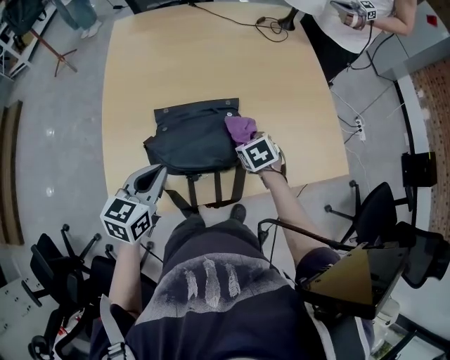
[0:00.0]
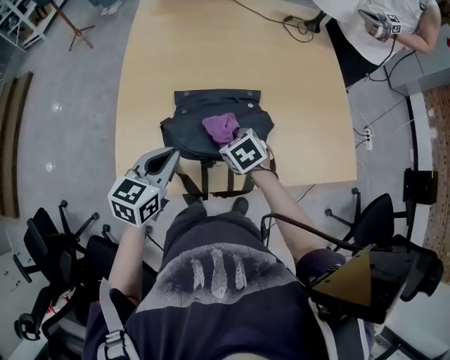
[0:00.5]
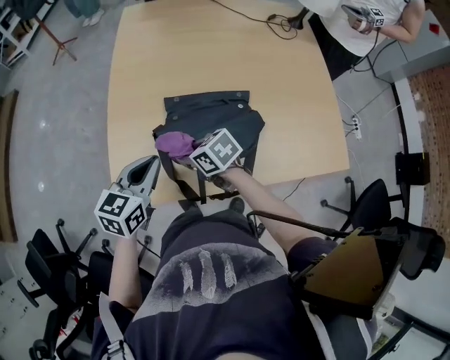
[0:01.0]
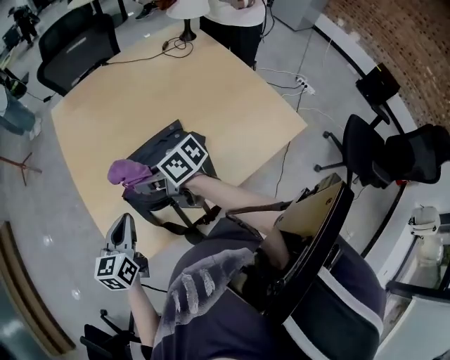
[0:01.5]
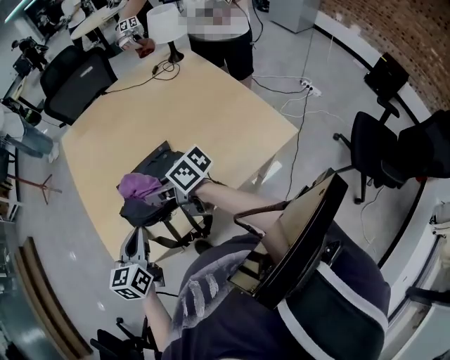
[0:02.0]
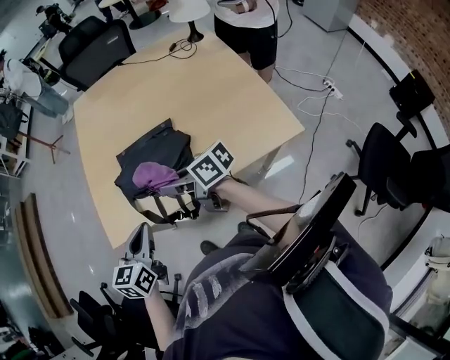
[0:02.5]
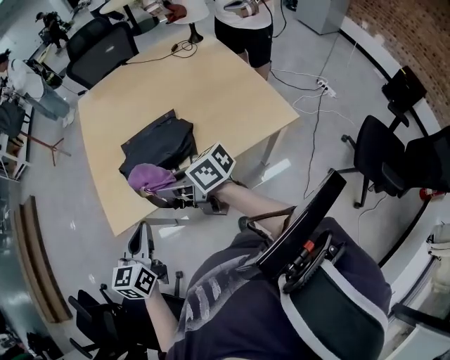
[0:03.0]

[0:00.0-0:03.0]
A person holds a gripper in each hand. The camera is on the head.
0:00.0 to 0:01.5: The left gripper changes place by approximately 5 cm. Meanwhile the right gripper moves roughly 25 cm, and angles its fingers upward, by roughly 50 degrees.
0:01.5 to 0:03.0: The grippers both shift backward by approximately 25 cm.

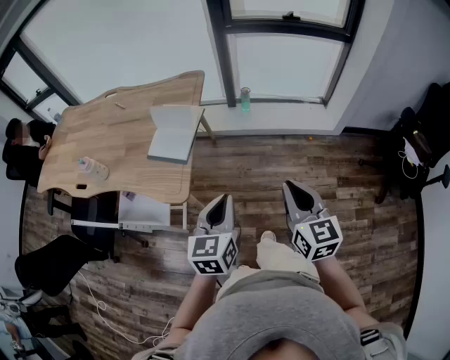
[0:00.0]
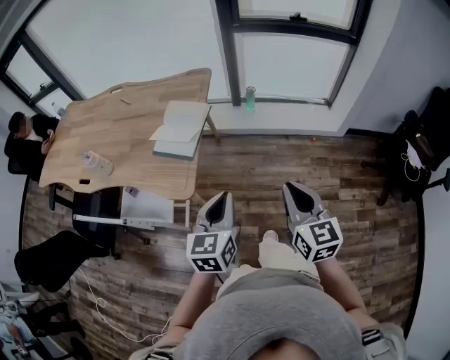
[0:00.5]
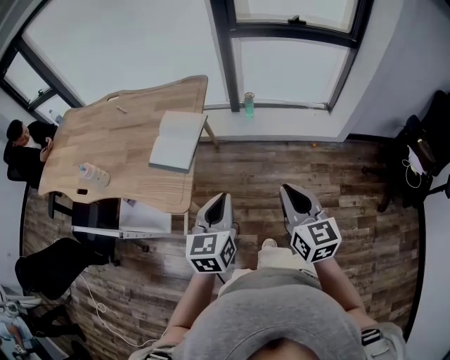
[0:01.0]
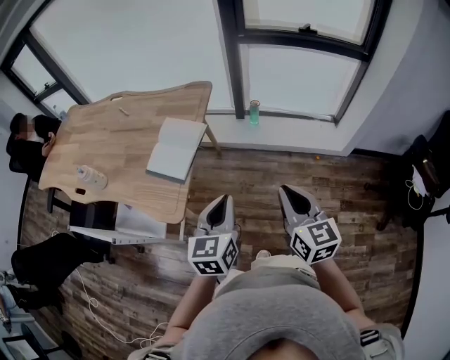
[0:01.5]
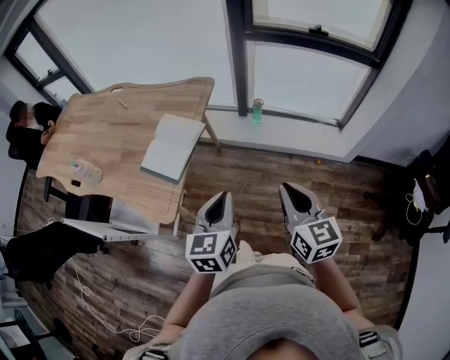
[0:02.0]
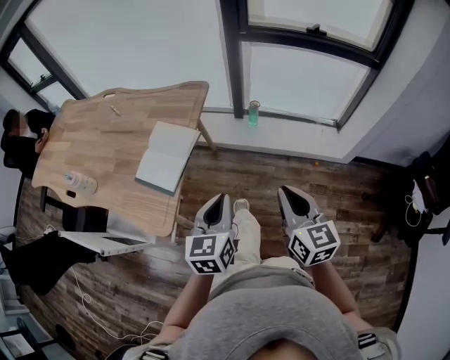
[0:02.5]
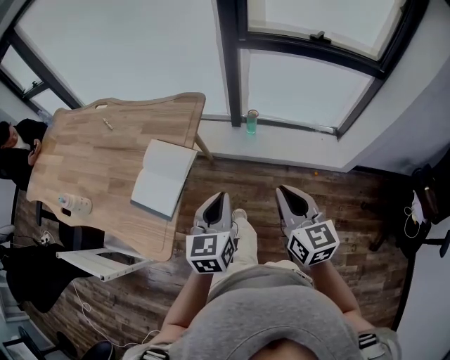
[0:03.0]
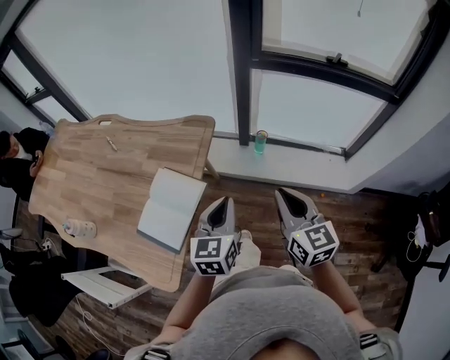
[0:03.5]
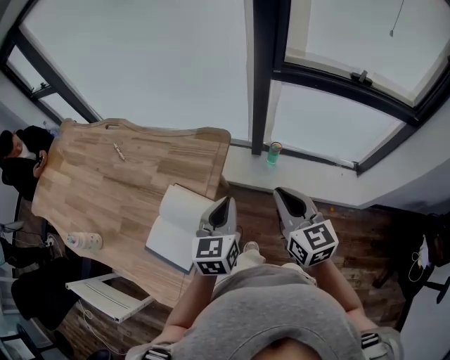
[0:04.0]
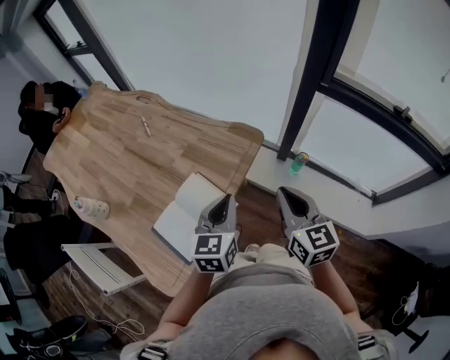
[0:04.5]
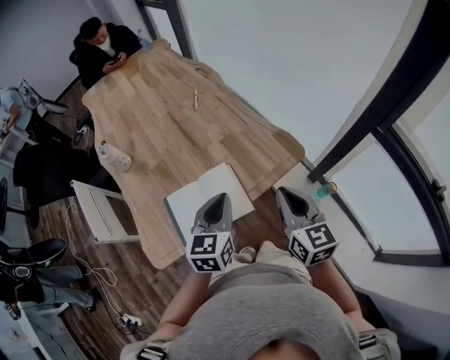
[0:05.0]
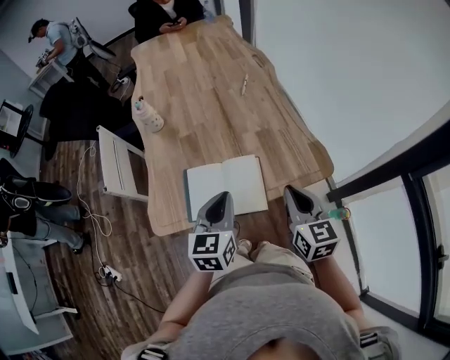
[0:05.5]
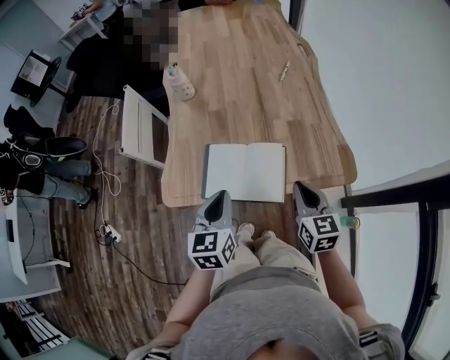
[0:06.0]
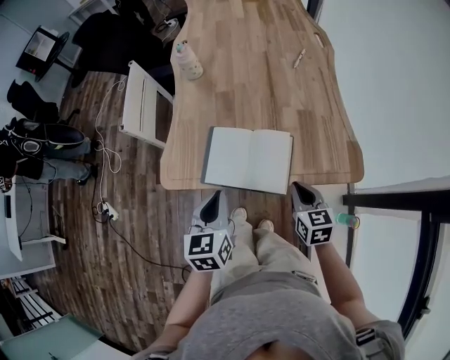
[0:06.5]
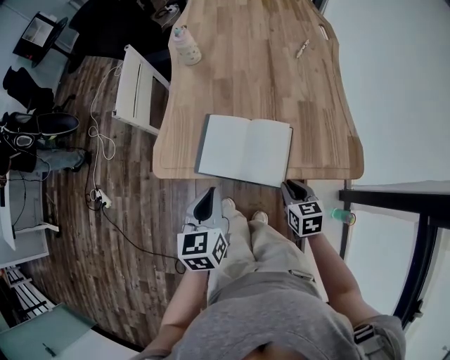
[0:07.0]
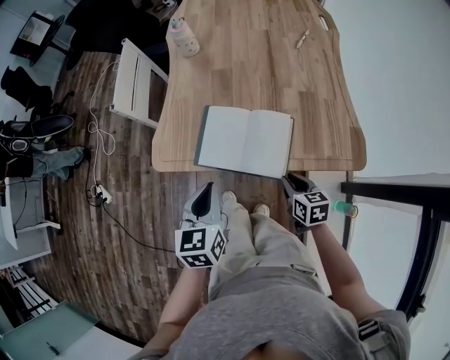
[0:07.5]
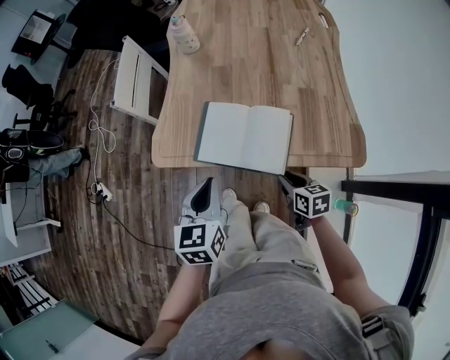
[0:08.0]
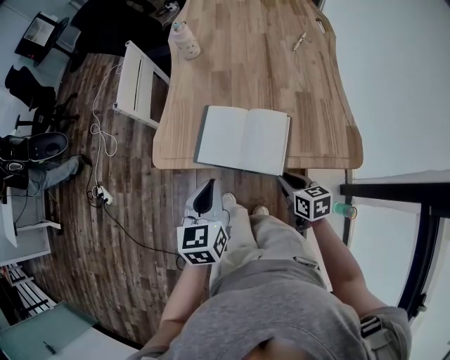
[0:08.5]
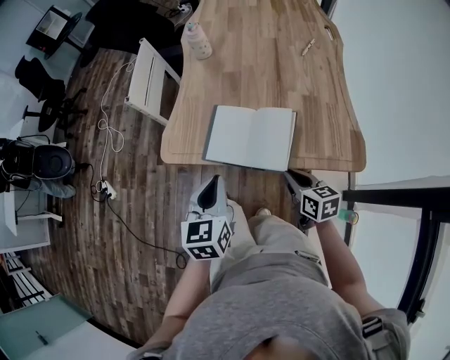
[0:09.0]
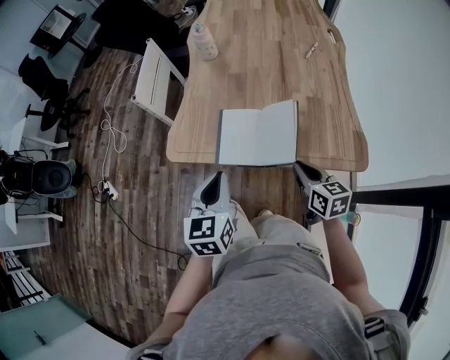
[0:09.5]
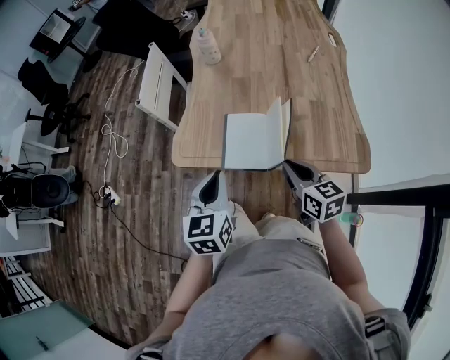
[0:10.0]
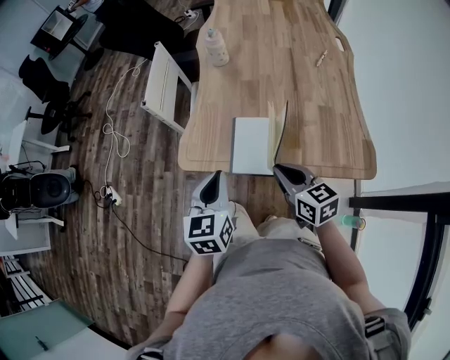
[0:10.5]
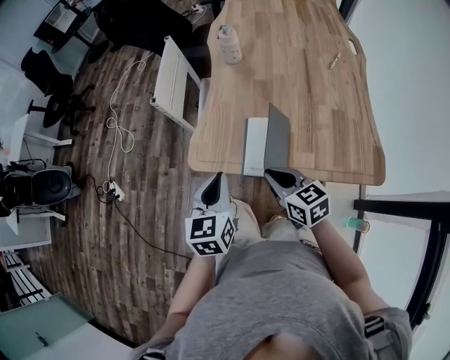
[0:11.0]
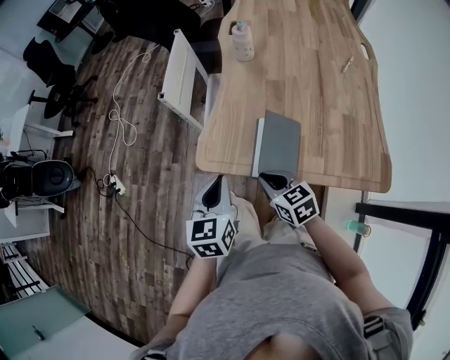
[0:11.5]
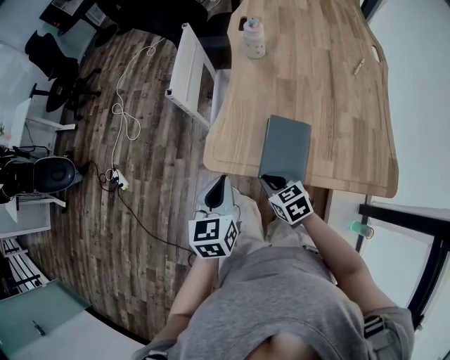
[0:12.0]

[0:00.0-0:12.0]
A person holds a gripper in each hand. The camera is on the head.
0:00.0 to 0:02.0: The left gripper shifts some 15 cm forward and to the right; the right gripper goes roughly 15 cm forward.
0:02.0 to 0:04.0: Both grippers travel together forward, some 35 cm.
0:04.0 to 0:06.0: The left gripper shifts by some 20 cm, and swivels about 70 degrees, while the right gripper moves some 25 cm, and turns by roughly 60 degrees.
0:06.0 to 0:08.0: The left gripper changes place by roughly 5 cm; the right gripper shifts approximately 20 cm downward, changes its angle by about 30 degrees, and opens up.
0:08.0 to 0:10.0: The right gripper goes about 15 cm upward, rotates some 20 degrees, and closes.
0:10.0 to 0:12.0: The left gripper goes some 15 cm to the left and forward, while the right gripper travels to the left, downward and forward by some 25 cm, and swivels about 30 degrees.

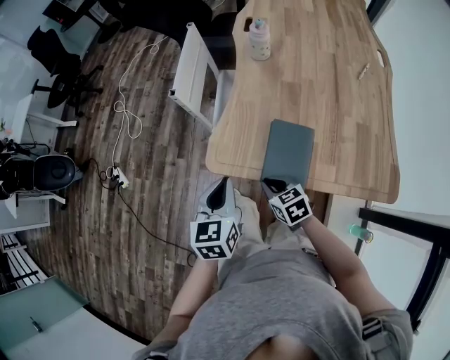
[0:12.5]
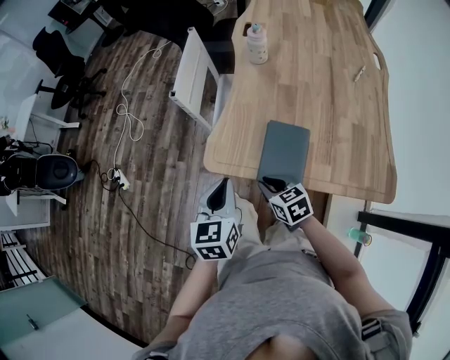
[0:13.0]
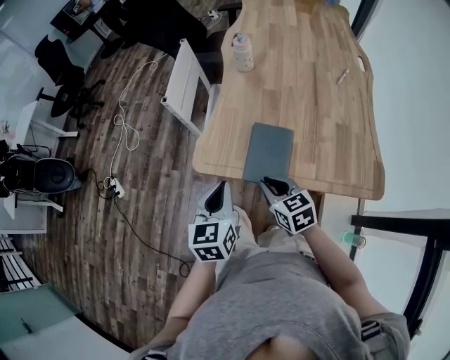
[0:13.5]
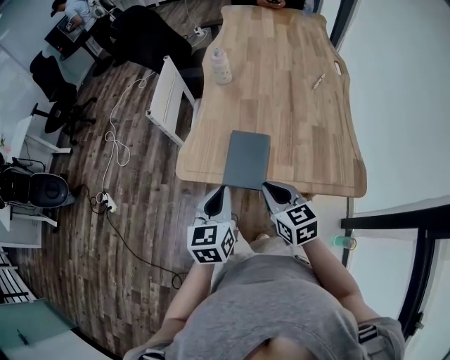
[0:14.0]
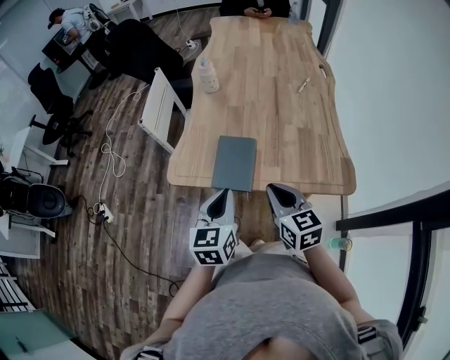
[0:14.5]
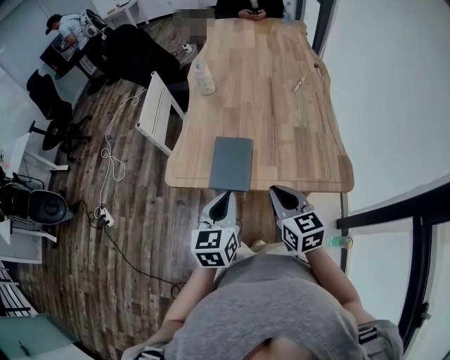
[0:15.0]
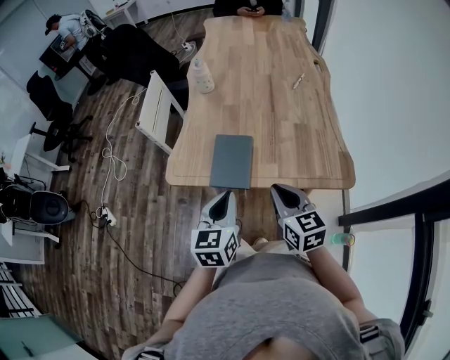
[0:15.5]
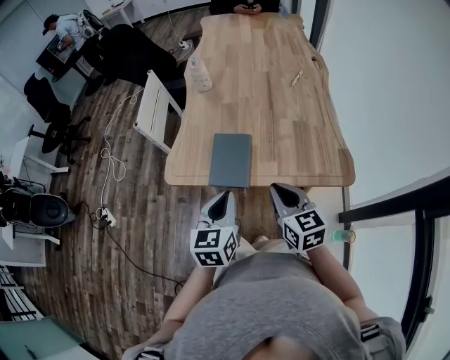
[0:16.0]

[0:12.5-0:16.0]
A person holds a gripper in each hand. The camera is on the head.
0:12.5 to 0:14.5: The right gripper is displaced upward, to the right and backward by approximately 25 cm, and turns by about 30 degrees; the left gripper is displaced to the right and backward by roughly 20 cm.
0:14.5 to 0:16.0: The grippers move only a little.

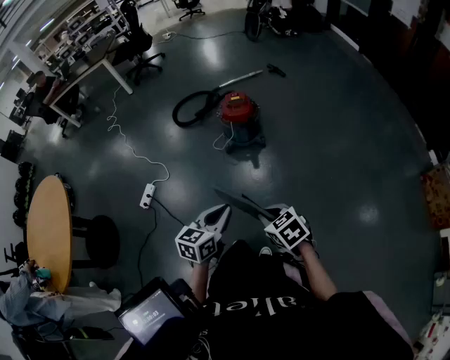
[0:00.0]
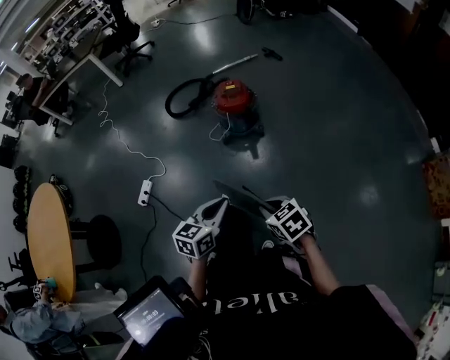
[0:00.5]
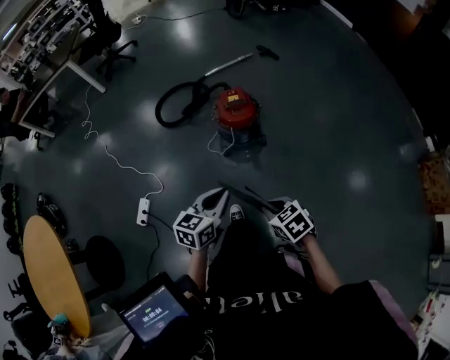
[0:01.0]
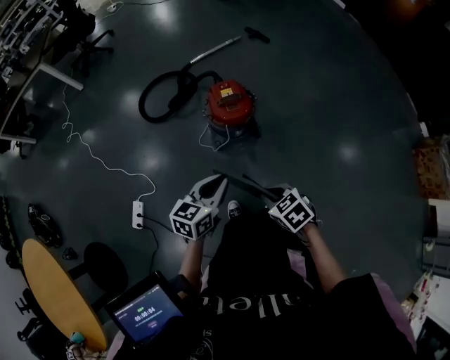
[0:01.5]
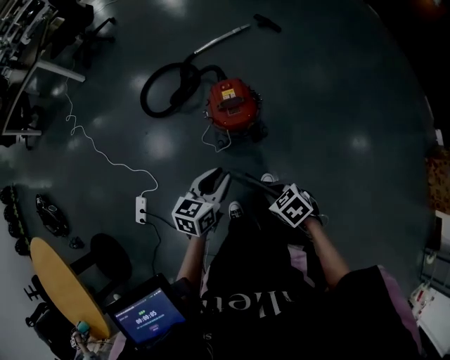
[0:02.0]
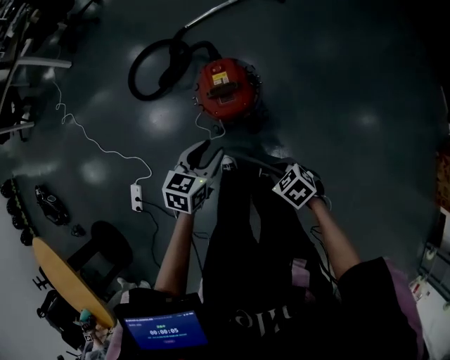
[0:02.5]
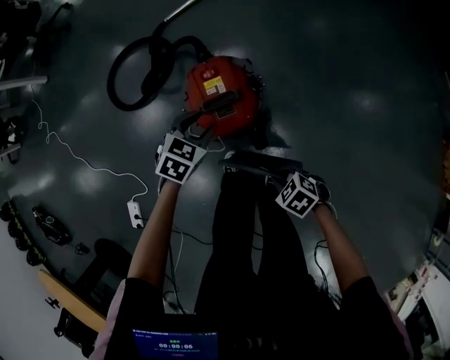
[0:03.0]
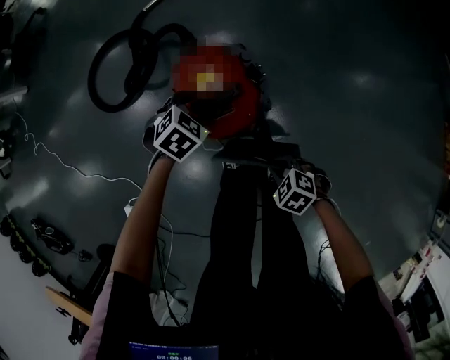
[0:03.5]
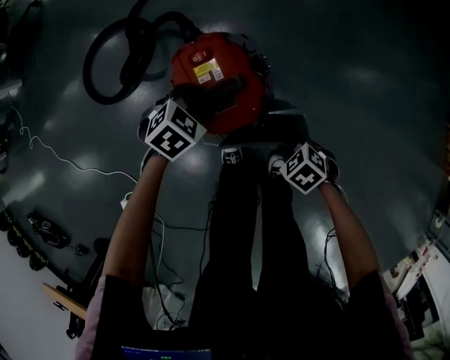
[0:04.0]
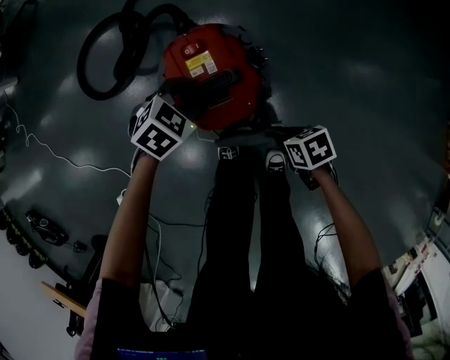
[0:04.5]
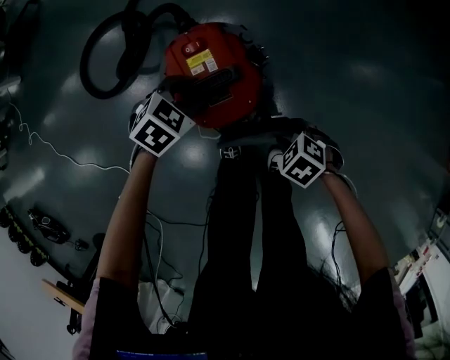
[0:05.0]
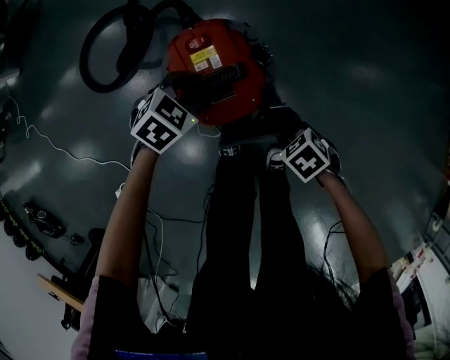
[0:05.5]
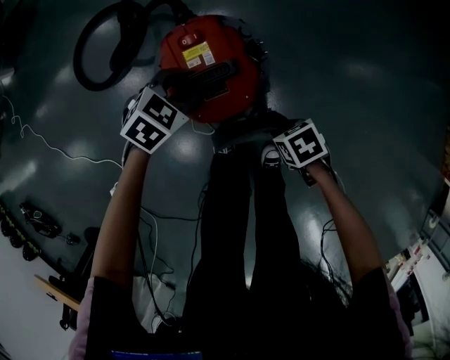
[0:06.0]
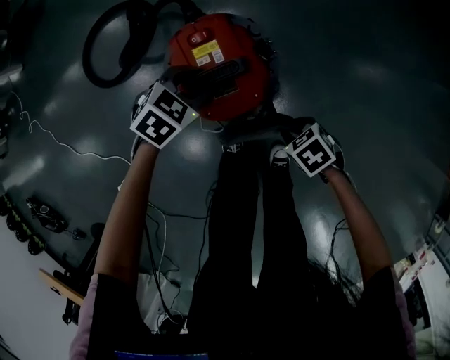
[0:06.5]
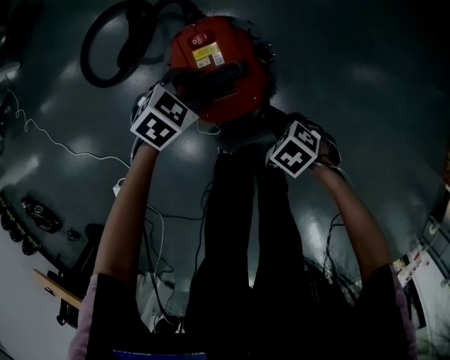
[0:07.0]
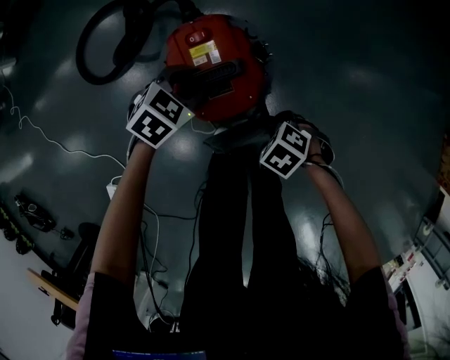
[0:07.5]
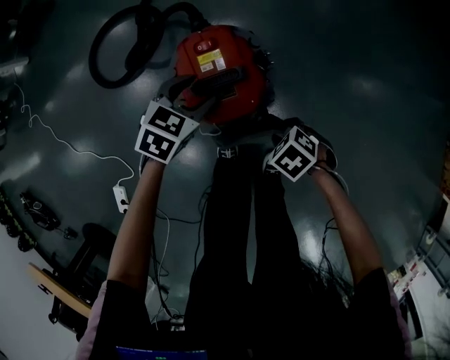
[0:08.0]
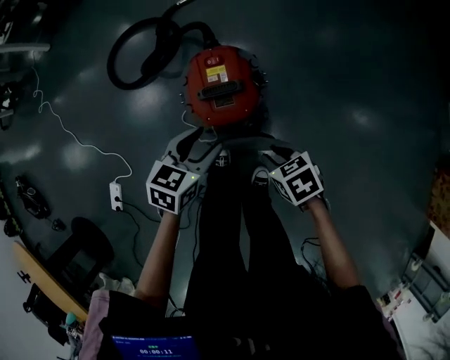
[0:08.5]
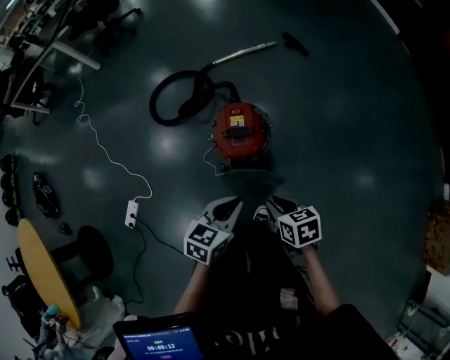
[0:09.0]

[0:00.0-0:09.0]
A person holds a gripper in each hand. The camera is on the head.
0:00.0 to 0:02.0: The pair of grippers is taken forward, some 50 cm. The left gripper opens its fingers.
0:02.0 to 0:04.5: The grippers both shift downward by about 40 cm. The right gripper turns by some 30 degrees; the left gripper changes its angle by roughly 60 degrees.
0:04.5 to 0:07.0: The right gripper rotates some 40 degrees.
0:07.0 to 0:09.0: The two grippers go some 35 cm upward. The left gripper rotates approximately 50 degrees, and closes up. Meanwhile the right gripper rotates roughly 40 degrees.
